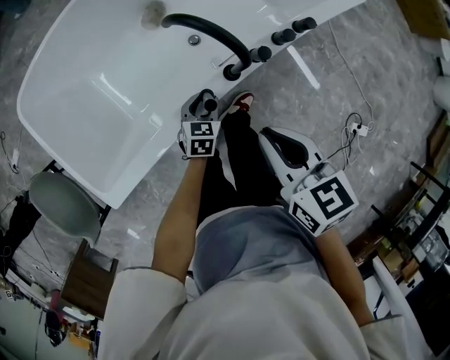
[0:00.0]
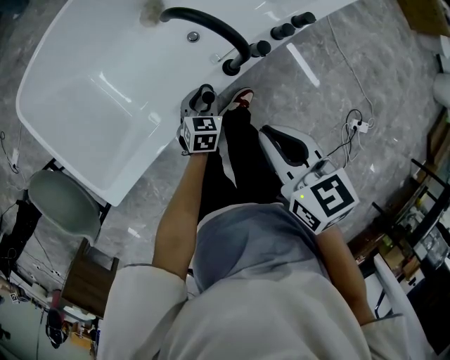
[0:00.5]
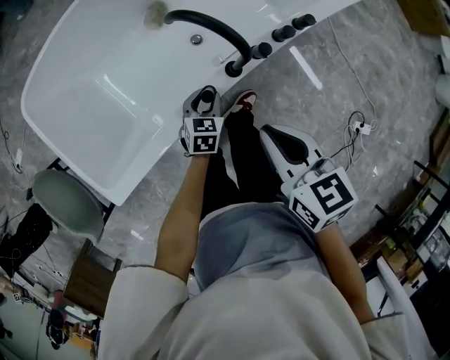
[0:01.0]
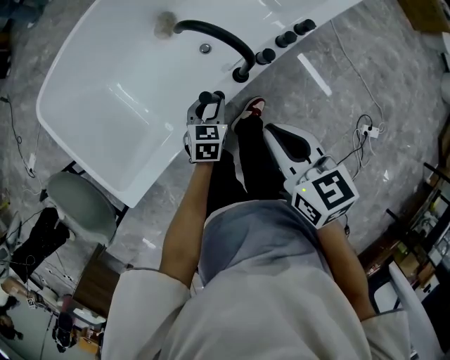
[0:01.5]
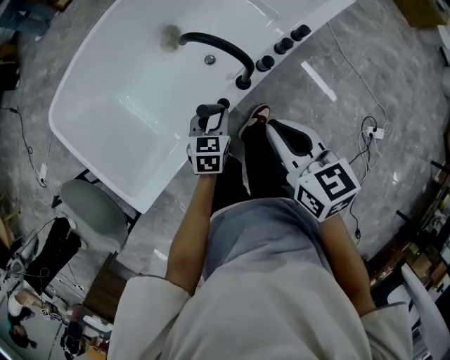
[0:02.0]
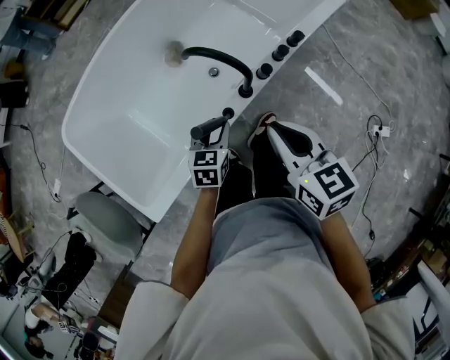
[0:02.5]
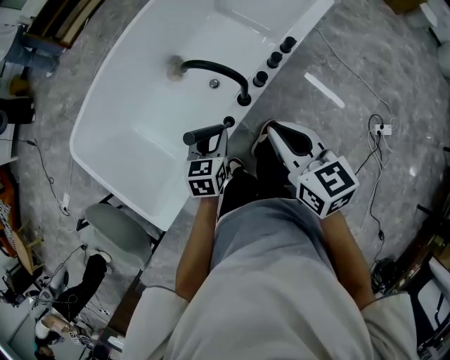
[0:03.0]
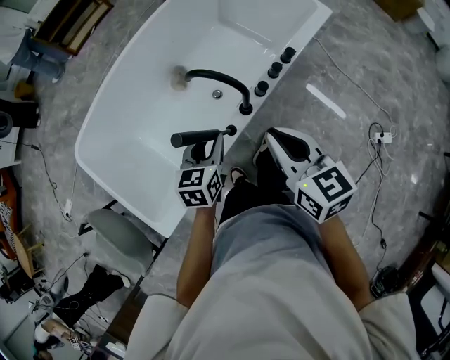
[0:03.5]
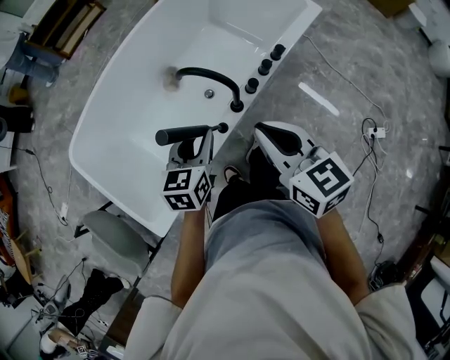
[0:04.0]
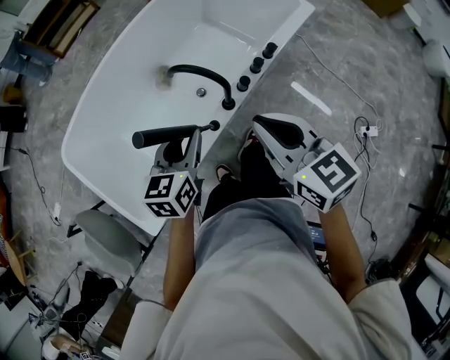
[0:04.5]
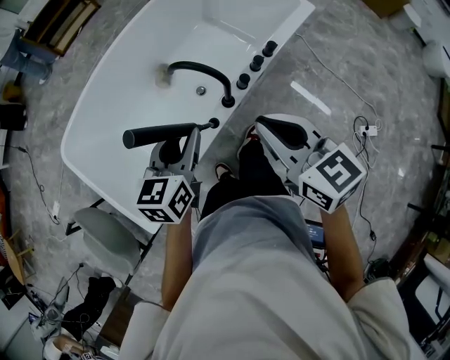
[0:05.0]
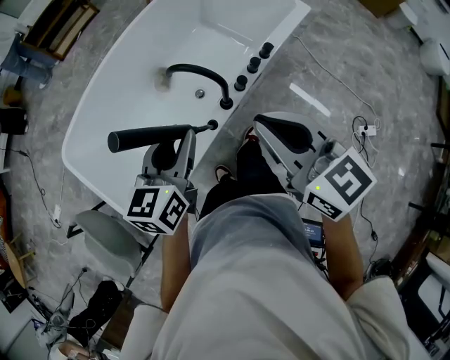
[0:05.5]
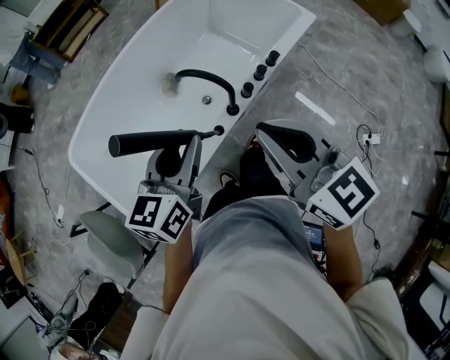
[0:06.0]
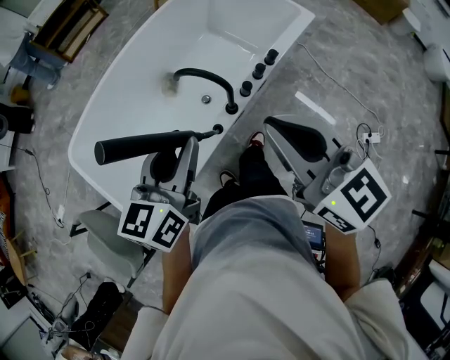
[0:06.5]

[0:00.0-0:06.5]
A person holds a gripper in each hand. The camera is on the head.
0:00.0 to 0:02.0: The left gripper goes some 10 cm upward.
0:02.0 to 0:04.5: The right gripper goes roughly 10 cm upward. The left gripper moves upward, roughly 20 cm.
0:04.5 to 0:06.5: Both grippers travel together upward, approximately 10 cm.

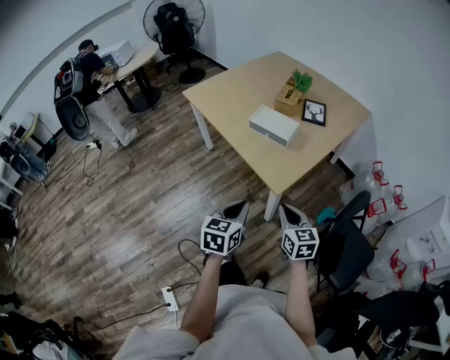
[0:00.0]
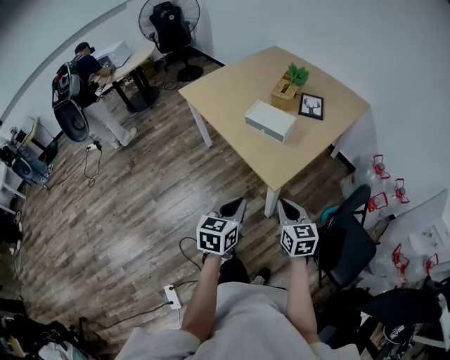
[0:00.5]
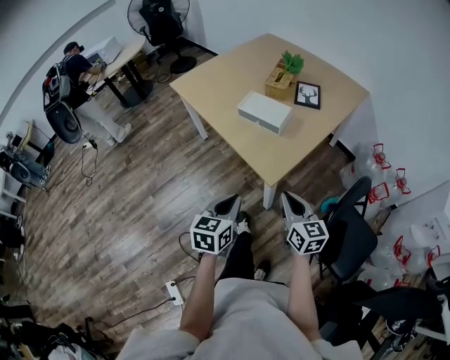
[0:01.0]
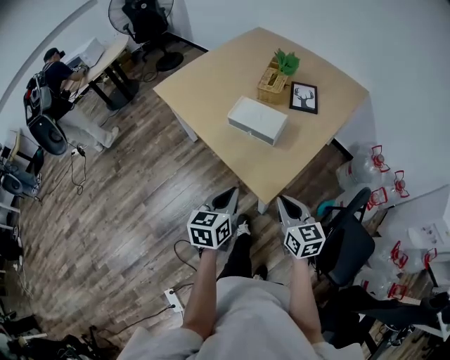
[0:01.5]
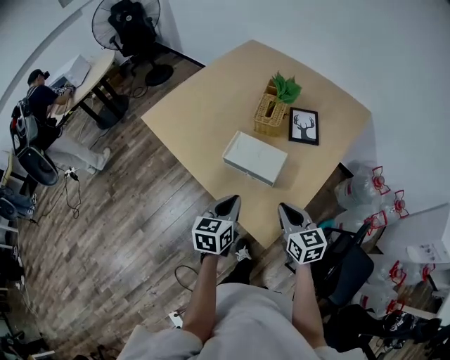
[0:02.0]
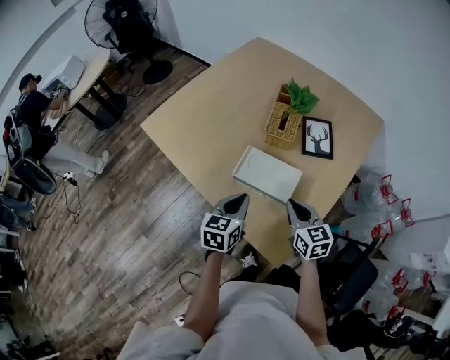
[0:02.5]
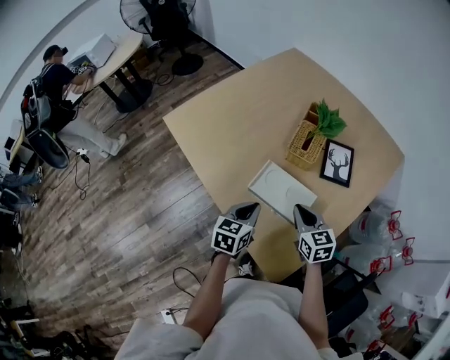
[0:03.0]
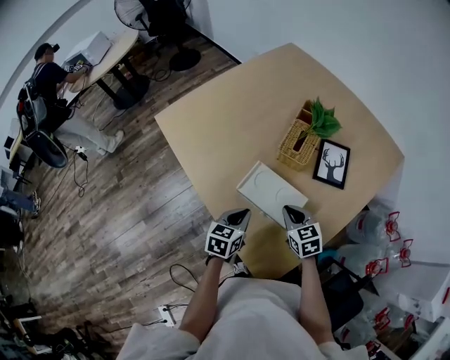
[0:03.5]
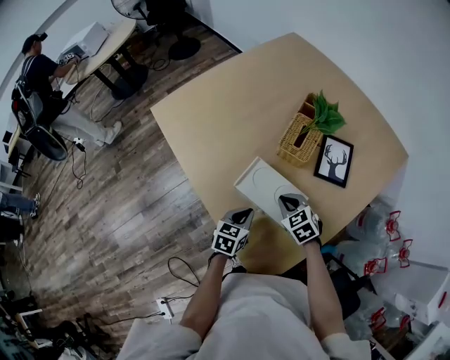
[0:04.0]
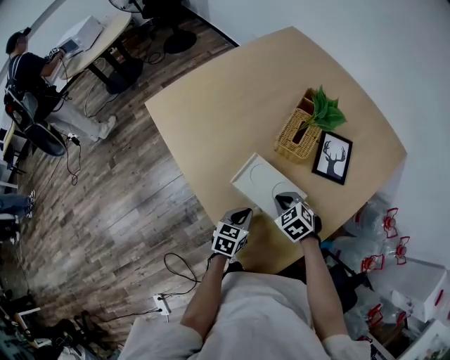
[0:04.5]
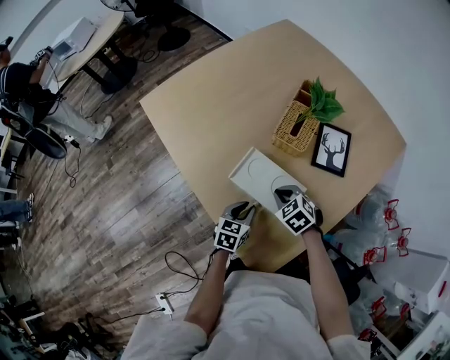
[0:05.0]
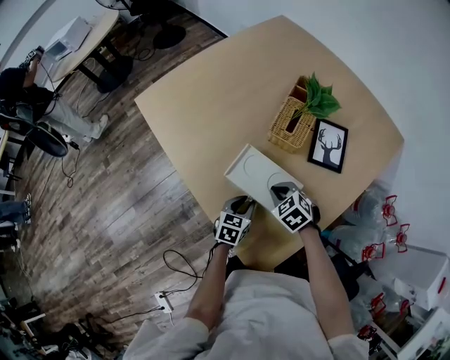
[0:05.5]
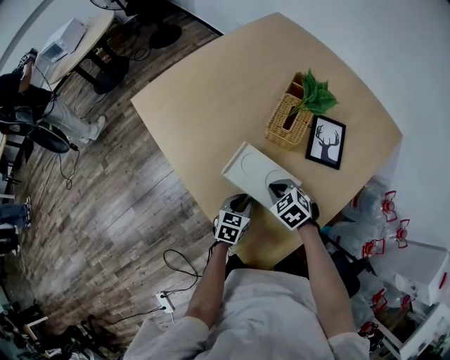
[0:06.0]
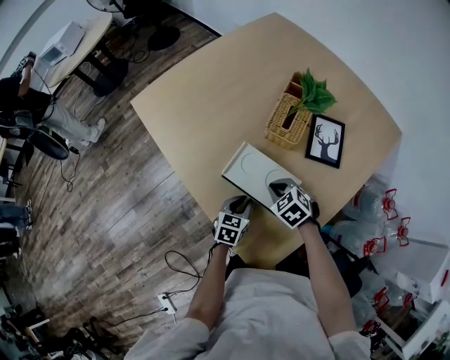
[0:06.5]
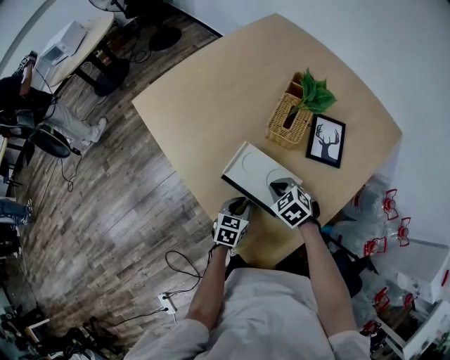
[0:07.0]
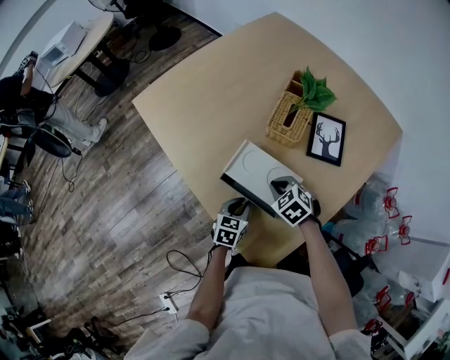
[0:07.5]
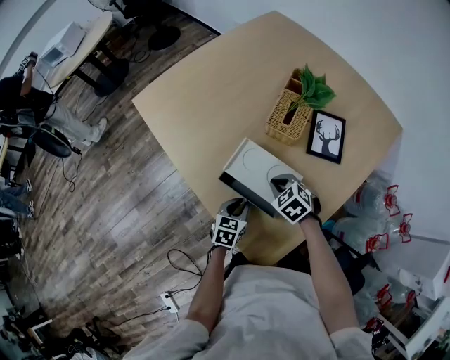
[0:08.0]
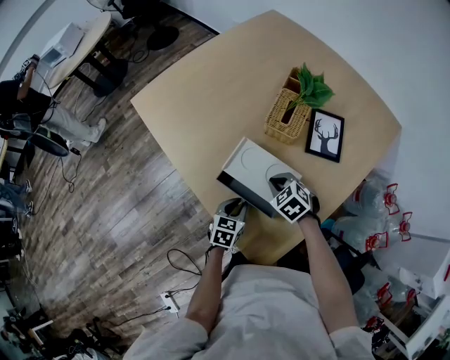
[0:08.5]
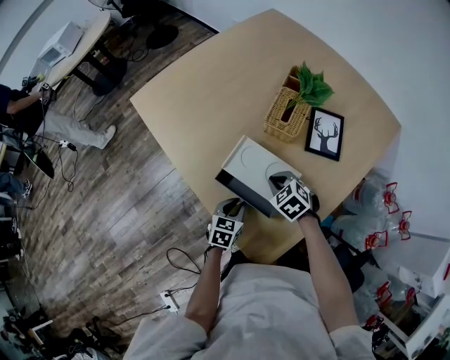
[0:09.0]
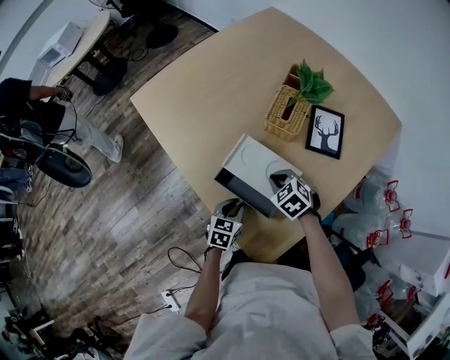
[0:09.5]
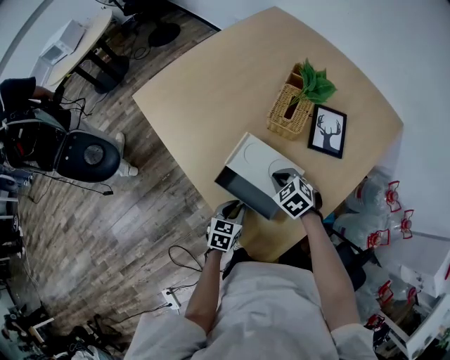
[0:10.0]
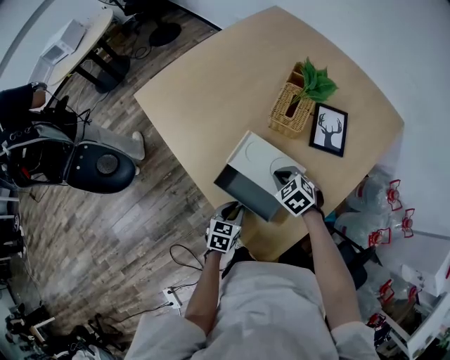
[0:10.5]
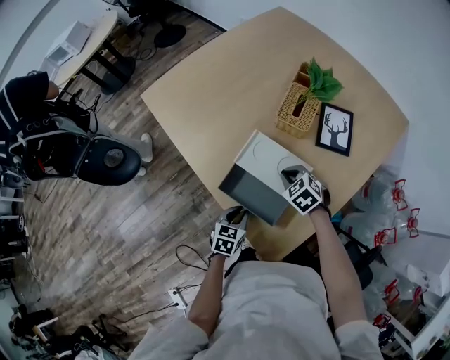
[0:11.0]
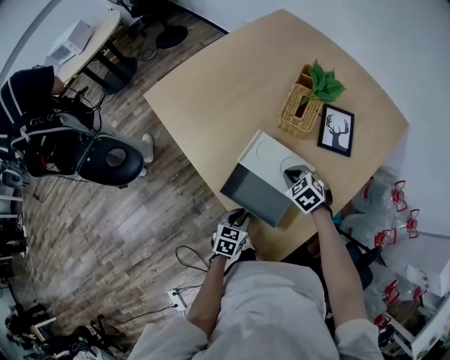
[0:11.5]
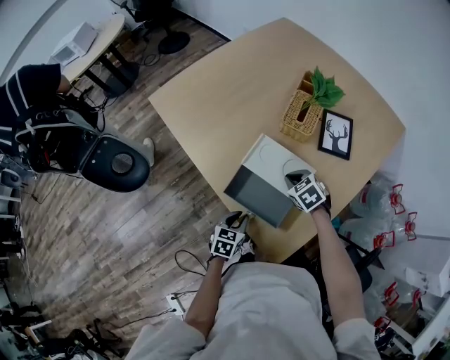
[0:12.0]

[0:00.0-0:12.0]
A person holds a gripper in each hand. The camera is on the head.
0:00.0 to 0:02.0: The two grippers go about 30 cm forward.
0:02.0 to 0:04.0: The left gripper travels downward and forward by about 20 cm. Meanwhile the right gripper is displaced forward and downward by roughly 25 cm, and rotates approximately 40 degrees.
0:04.0 to 0:06.0: The left gripper ends up some 5 cm from where it was.
0:06.0 to 0:08.0: The grippers move only a little.
0:08.0 to 0:10.0: The grippers stay close to where they were, moving slightly.
0:10.0 to 0:12.0: The left gripper shifts by approximately 5 cm.

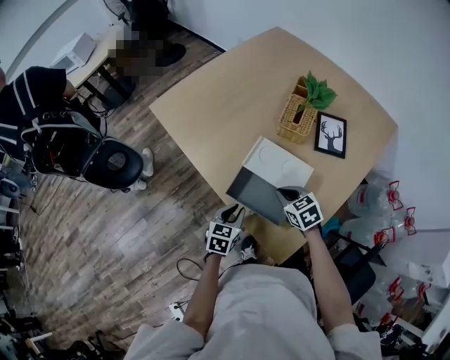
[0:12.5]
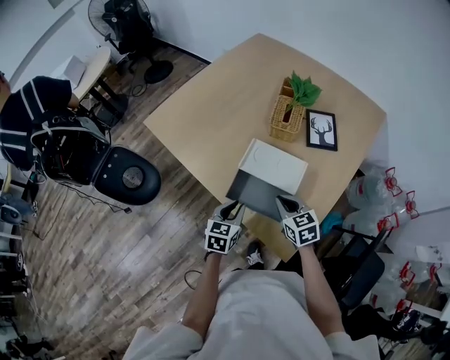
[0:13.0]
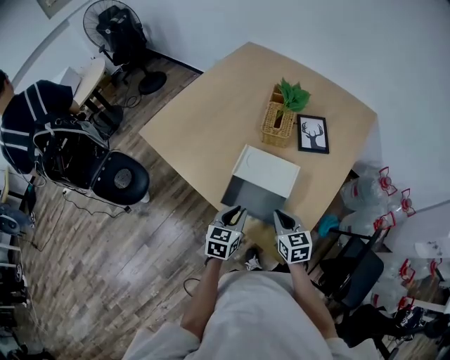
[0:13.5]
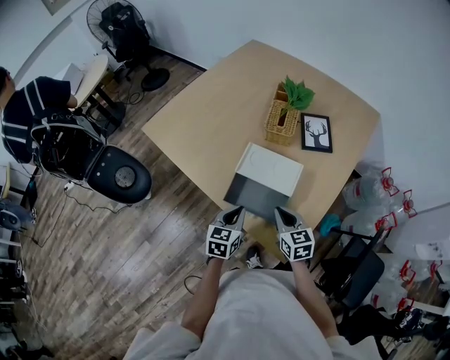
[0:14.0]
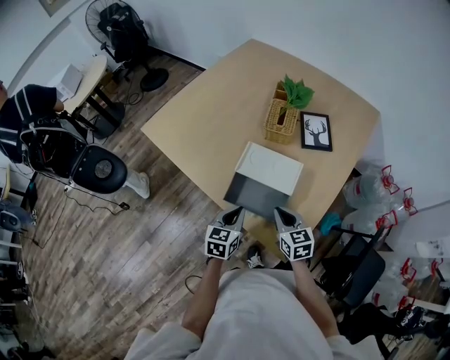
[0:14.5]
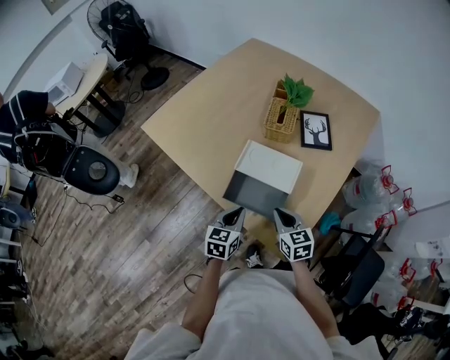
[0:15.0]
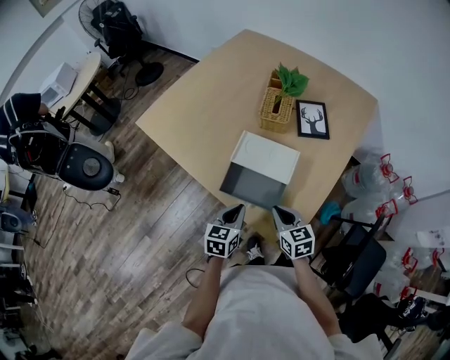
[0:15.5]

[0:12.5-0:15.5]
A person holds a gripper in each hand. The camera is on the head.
0:12.5 to 0:14.0: The left gripper heads upward, covering about 5 cm; the right gripper travels backward by roughly 5 cm, and changes its angle by some 30 degrees.
0:14.0 to 0:15.5: There are only small adjustments of the grippers.

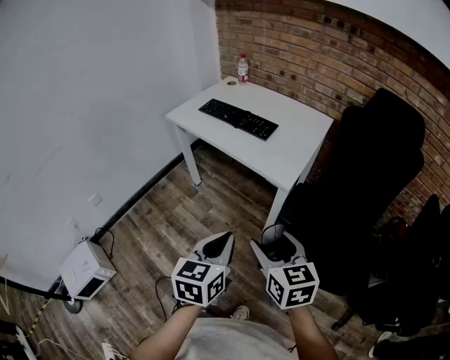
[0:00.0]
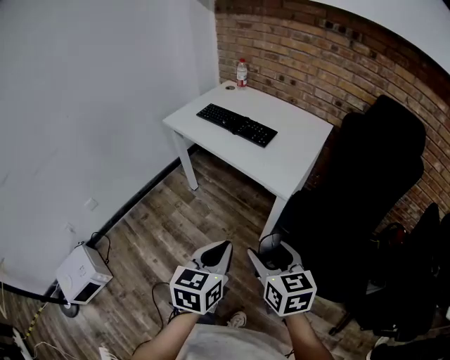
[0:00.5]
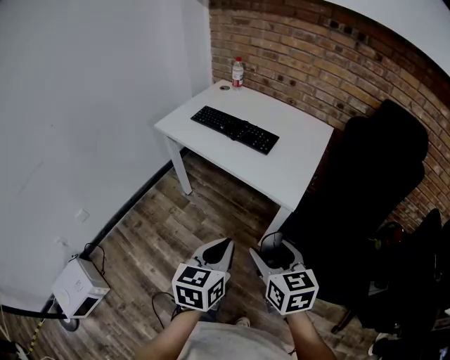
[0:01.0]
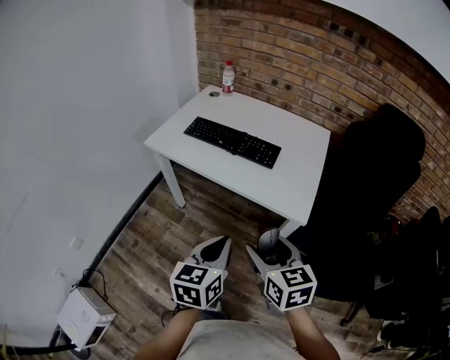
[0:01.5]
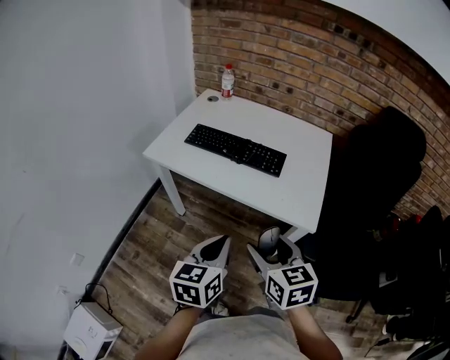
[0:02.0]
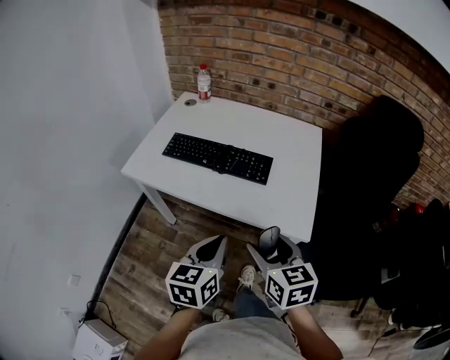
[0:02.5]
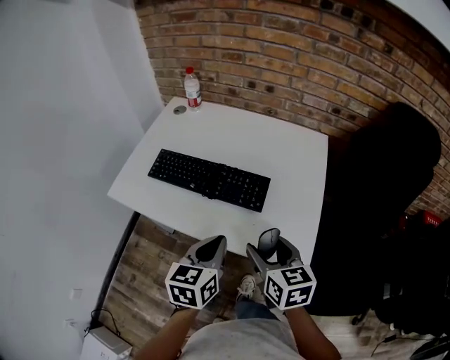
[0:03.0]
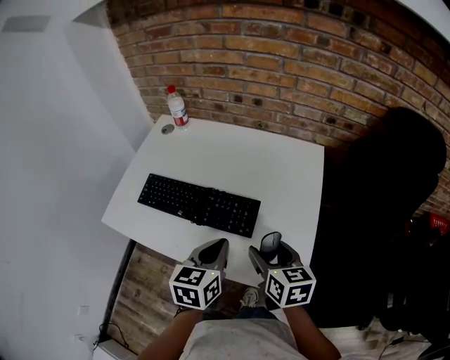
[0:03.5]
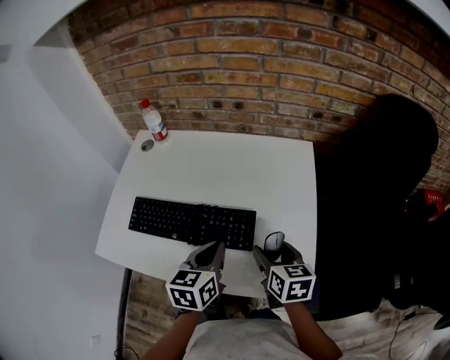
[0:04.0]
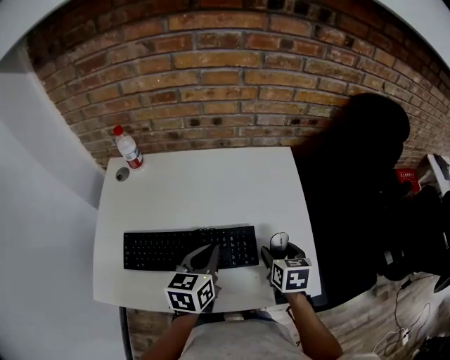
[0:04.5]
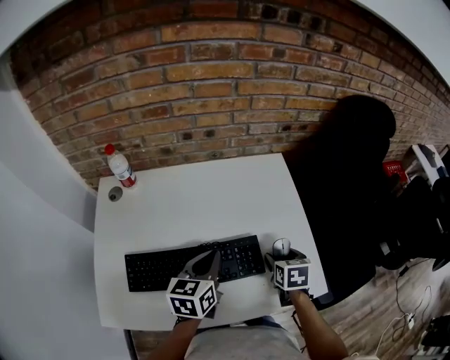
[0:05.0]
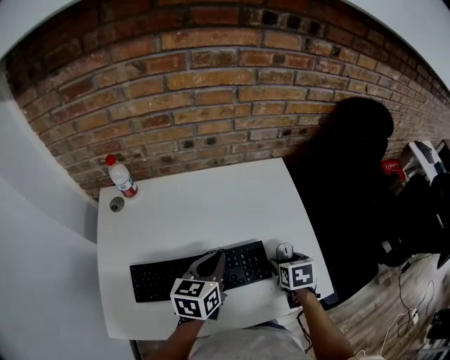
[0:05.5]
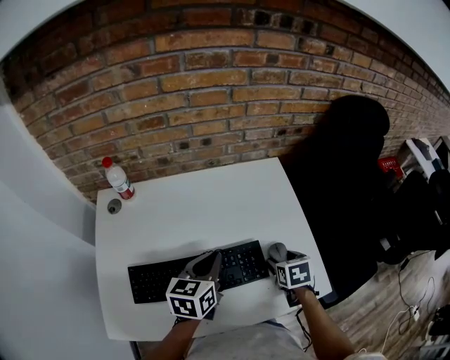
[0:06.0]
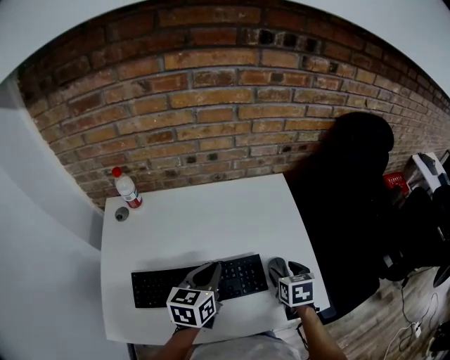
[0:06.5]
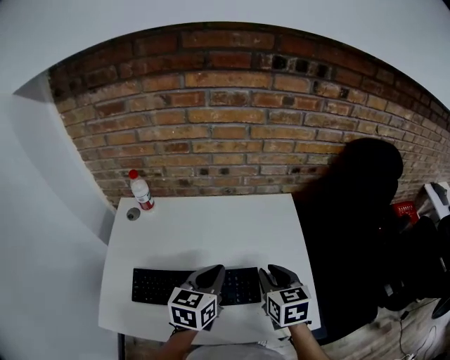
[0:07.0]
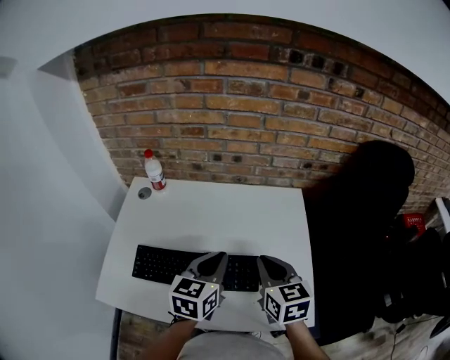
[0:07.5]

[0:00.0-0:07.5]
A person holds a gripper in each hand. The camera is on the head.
0:00.0 to 0:02.0: Both grippers travel together forward and to the left, roughly 30 cm.
0:02.0 to 0:04.0: The two grippers go some 35 cm forward. The right gripper changes its angle by roughly 30 degrees.
0:04.0 to 0:05.5: The right gripper shifts about 5 cm downward, and swivels some 30 degrees. Meanwhile the left gripper shifts by about 10 cm, and rotates some 20 degrees.
0:05.5 to 0:07.5: The right gripper travels upward and to the left by some 20 cm, tilts its fingers approximately 30 degrees upward, and closes. The left gripper goes approximately 10 cm upward.
